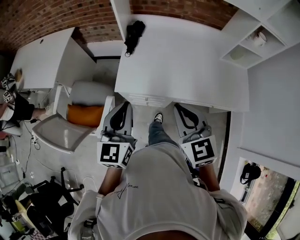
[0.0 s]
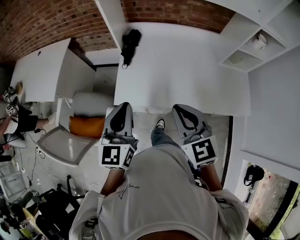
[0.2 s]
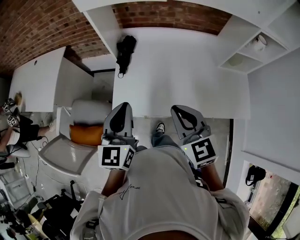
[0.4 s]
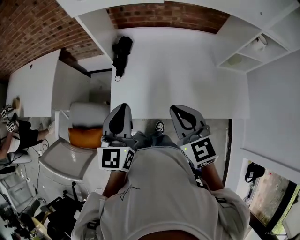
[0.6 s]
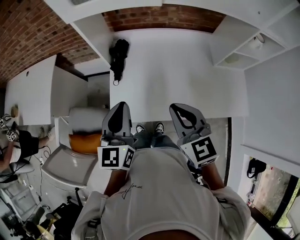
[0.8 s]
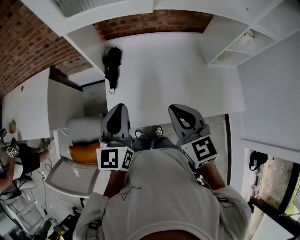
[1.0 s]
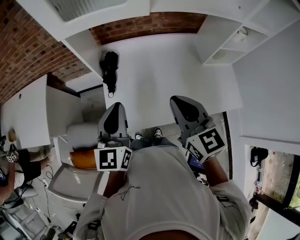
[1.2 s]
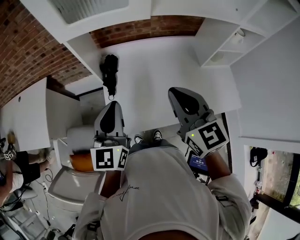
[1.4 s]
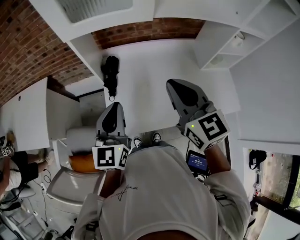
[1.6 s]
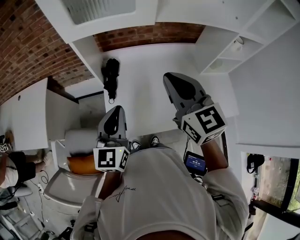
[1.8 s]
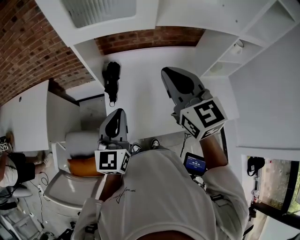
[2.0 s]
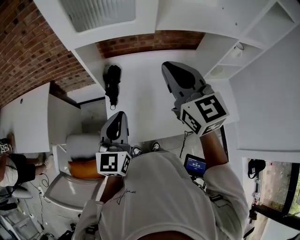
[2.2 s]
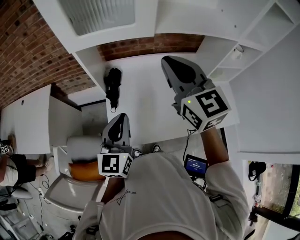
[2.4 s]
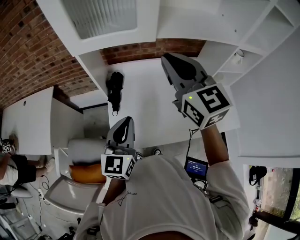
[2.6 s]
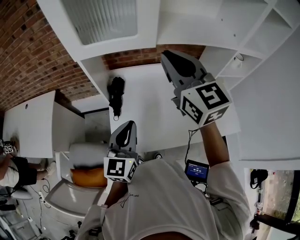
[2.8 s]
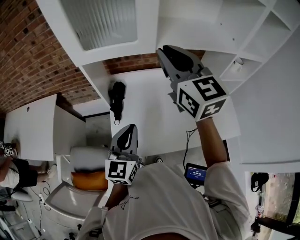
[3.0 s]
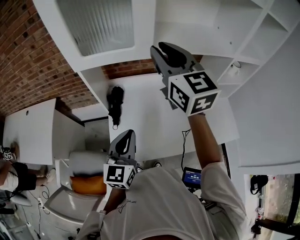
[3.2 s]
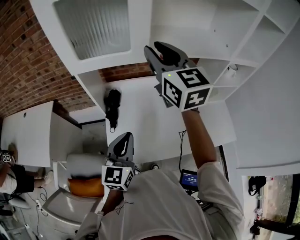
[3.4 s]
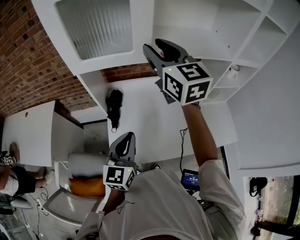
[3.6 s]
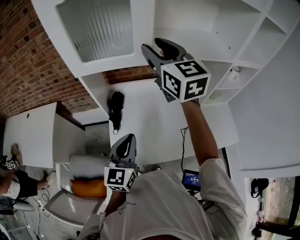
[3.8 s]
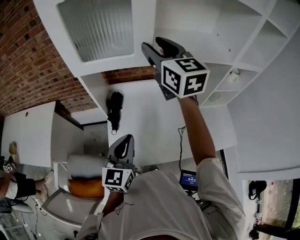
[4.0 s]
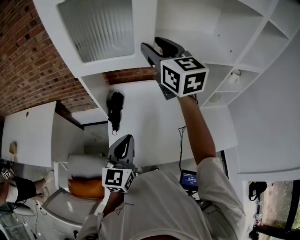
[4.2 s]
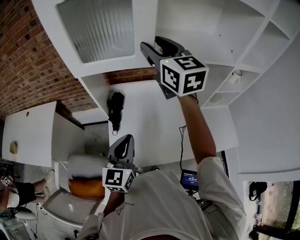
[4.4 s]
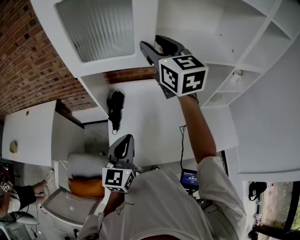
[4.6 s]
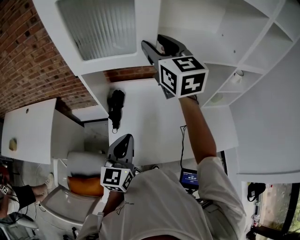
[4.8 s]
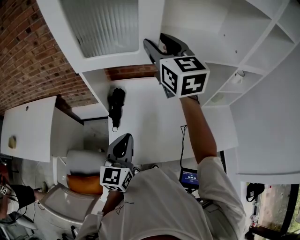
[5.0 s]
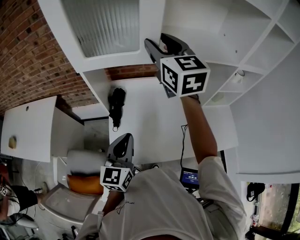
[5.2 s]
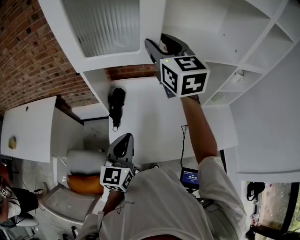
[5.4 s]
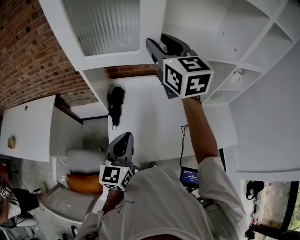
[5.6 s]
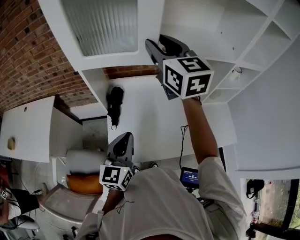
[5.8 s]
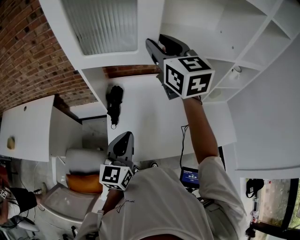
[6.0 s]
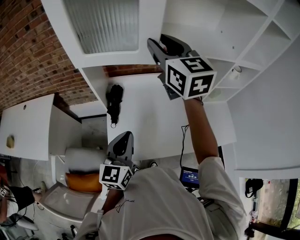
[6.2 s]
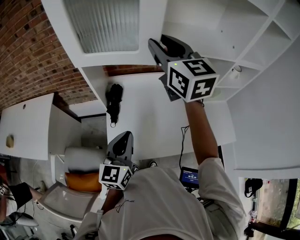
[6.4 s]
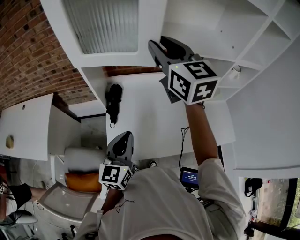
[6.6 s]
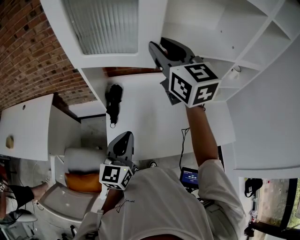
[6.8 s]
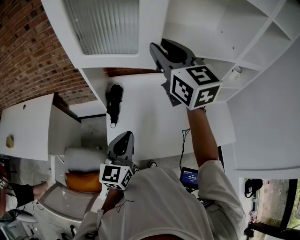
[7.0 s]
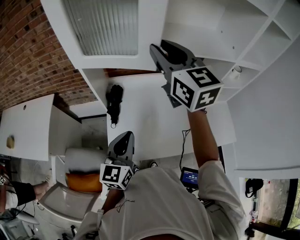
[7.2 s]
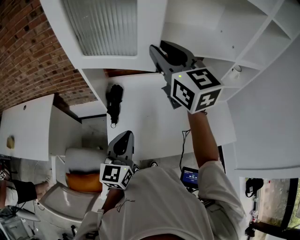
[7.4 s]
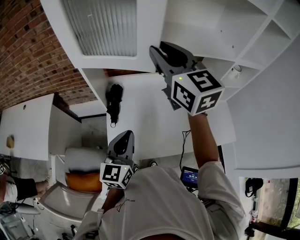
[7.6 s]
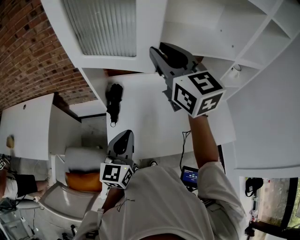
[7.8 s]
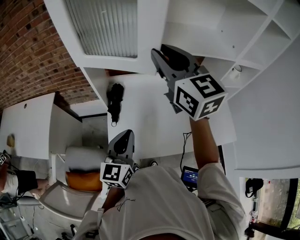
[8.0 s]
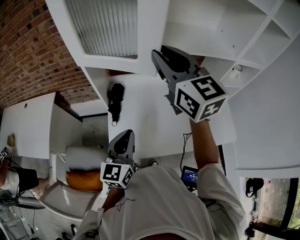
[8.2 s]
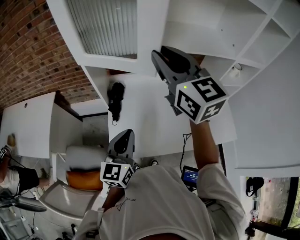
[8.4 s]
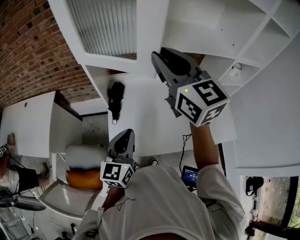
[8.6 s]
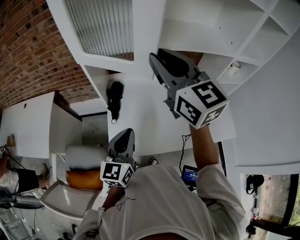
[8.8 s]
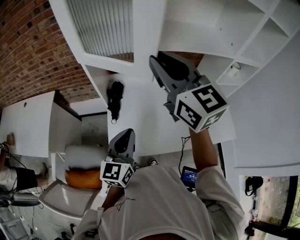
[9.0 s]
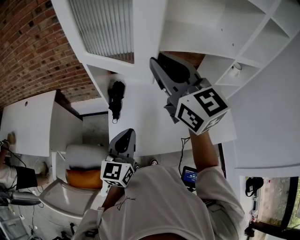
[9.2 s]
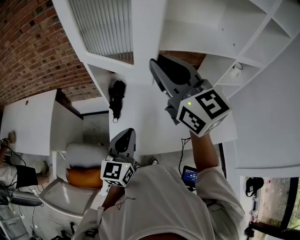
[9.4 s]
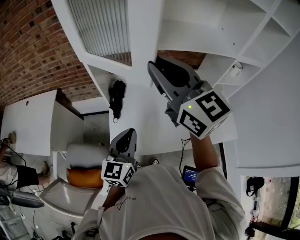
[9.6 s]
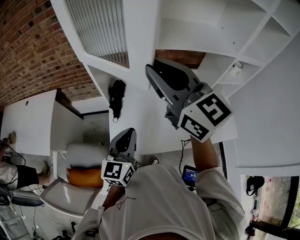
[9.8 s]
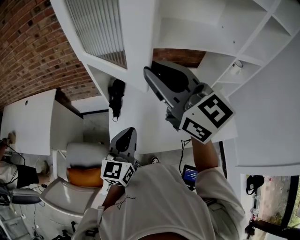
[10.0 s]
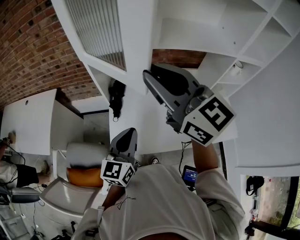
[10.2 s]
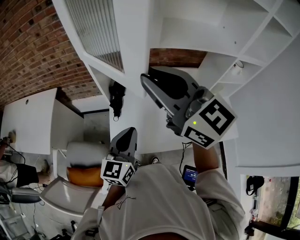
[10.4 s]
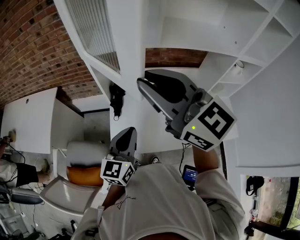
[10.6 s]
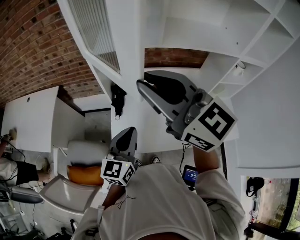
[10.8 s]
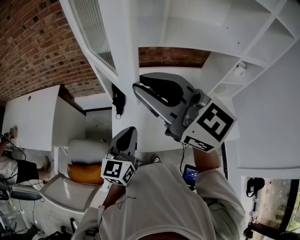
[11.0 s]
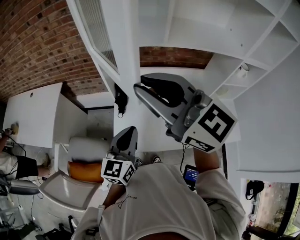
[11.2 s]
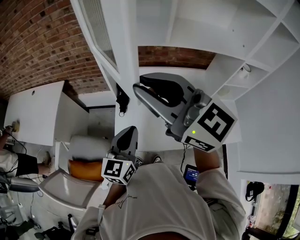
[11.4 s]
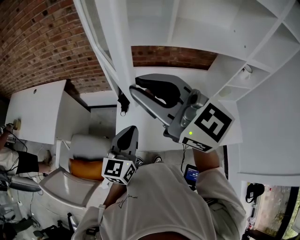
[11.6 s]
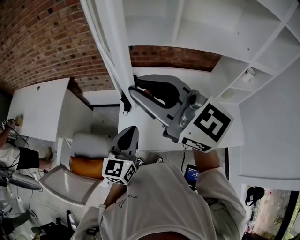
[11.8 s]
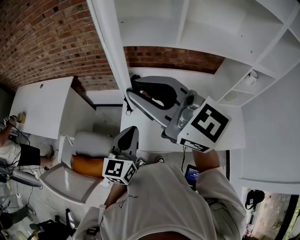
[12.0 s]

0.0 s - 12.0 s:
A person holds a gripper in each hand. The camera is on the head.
0.0 s - 1.6 s: The left gripper heads forward, covering about 20 cm; the right gripper heads forward and upward, covering about 25 cm.
1.6 s - 3.0 s: The right gripper heads upward and forward, covering approximately 20 cm.
3.0 s - 4.4 s: The right gripper is displaced forward by roughly 10 cm, and opens up.
4.4 s - 6.0 s: The grippers stay close to where they were, moving slightly.
6.0 s - 7.6 s: The grippers move only a little.
7.6 s - 9.0 s: The right gripper goes roughly 5 cm backward.
9.0 s - 10.4 s: The right gripper goes some 5 cm backward.
10.4 s - 12.0 s: The right gripper shifts approximately 10 cm to the left.

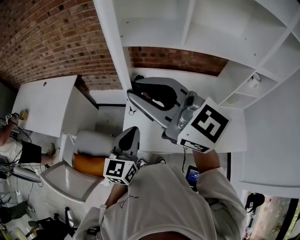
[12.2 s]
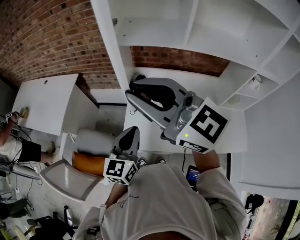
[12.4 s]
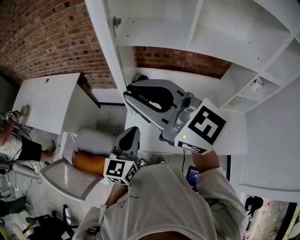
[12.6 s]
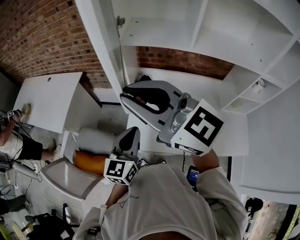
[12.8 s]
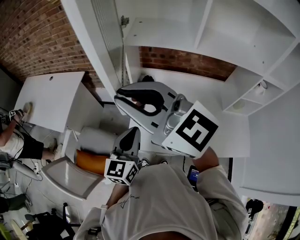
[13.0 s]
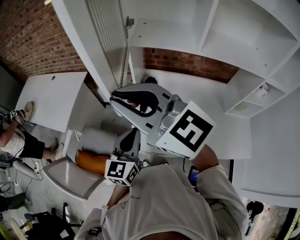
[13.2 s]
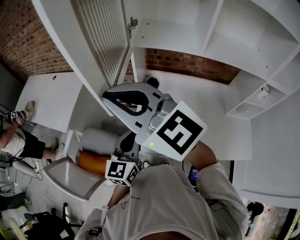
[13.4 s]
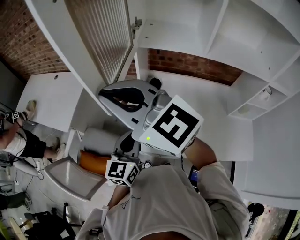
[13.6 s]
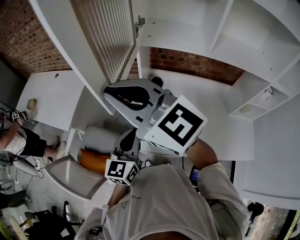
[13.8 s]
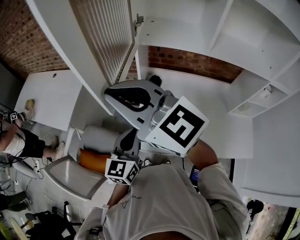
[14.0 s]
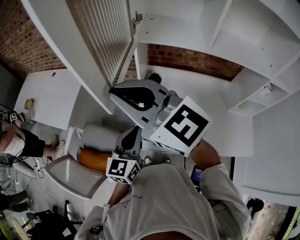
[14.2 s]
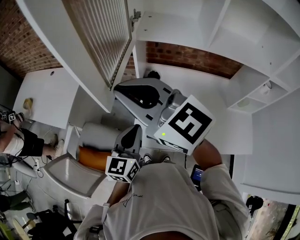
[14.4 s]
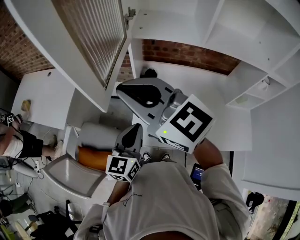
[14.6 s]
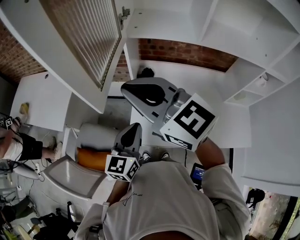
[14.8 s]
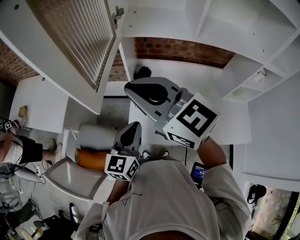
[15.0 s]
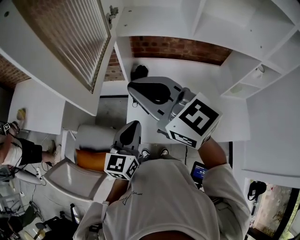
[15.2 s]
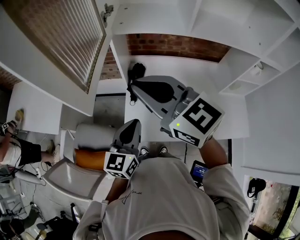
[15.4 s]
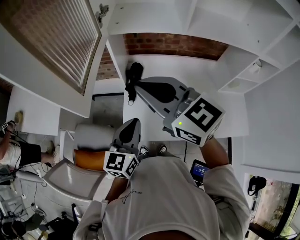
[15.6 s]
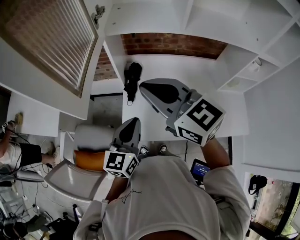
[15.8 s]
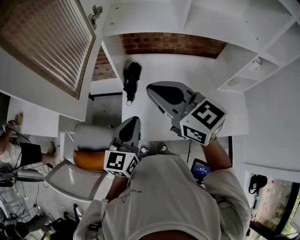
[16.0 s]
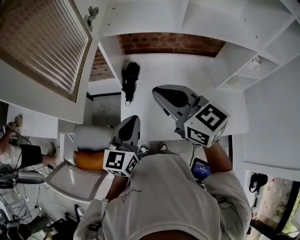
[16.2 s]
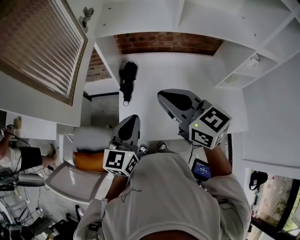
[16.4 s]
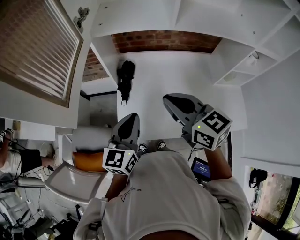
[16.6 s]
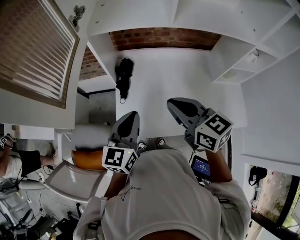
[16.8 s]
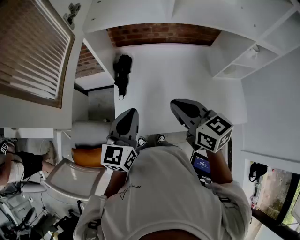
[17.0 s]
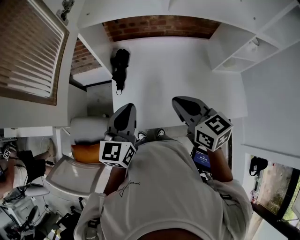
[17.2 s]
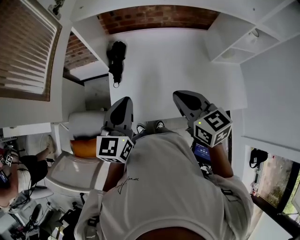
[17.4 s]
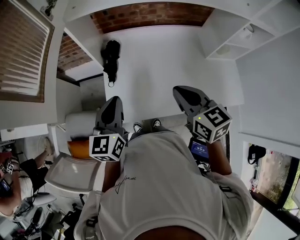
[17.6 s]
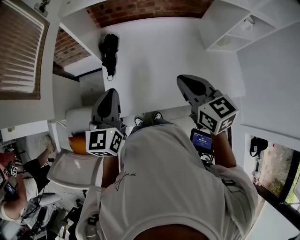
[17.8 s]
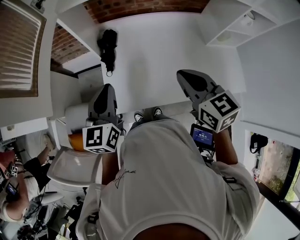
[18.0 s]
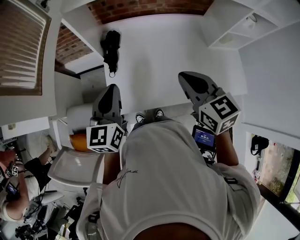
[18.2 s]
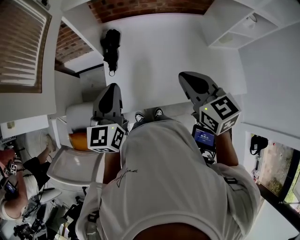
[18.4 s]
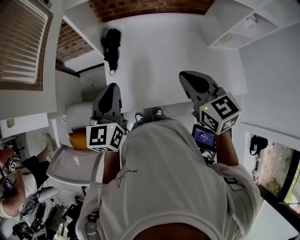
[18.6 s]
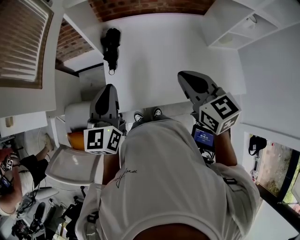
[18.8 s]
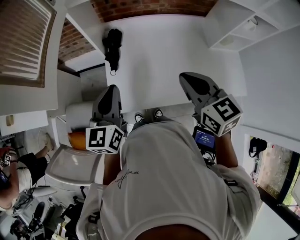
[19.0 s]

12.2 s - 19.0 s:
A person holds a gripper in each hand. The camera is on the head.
12.2 s - 13.6 s: The right gripper moves to the left, roughly 15 cm. Meanwhile the left gripper heads to the left, covering roughly 5 cm.
13.6 s - 15.0 s: The right gripper travels to the right and downward by about 10 cm.
15.0 s - 16.2 s: The right gripper moves to the right and downward, about 15 cm.
16.2 s - 17.6 s: The right gripper is displaced to the right, downward and backward by about 20 cm, and swivels roughly 30 degrees.
17.6 s - 19.0 s: The grippers make only small movements.

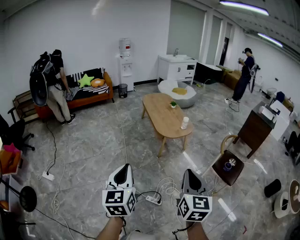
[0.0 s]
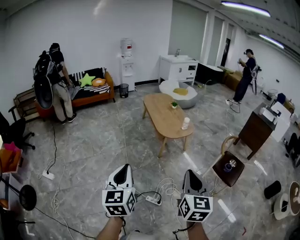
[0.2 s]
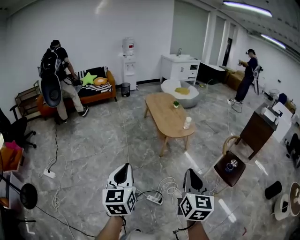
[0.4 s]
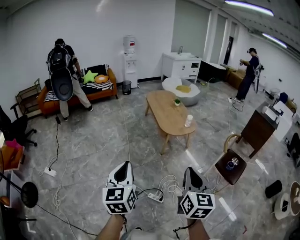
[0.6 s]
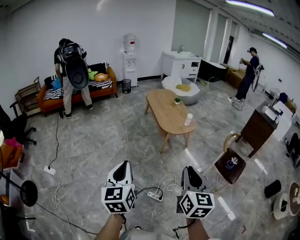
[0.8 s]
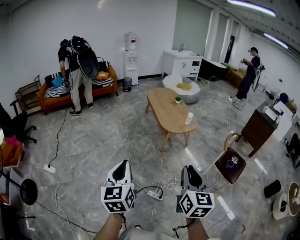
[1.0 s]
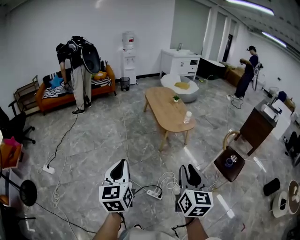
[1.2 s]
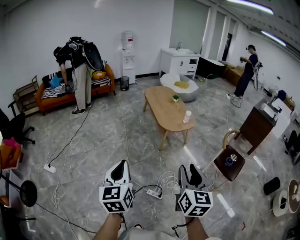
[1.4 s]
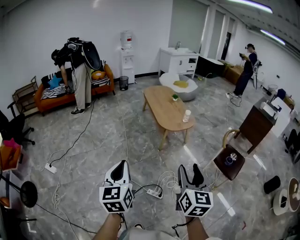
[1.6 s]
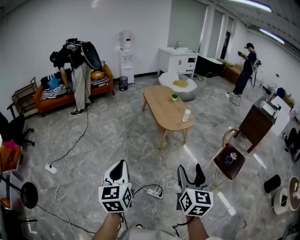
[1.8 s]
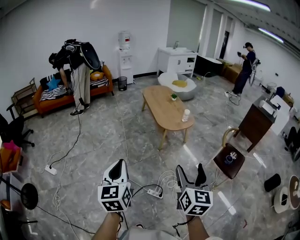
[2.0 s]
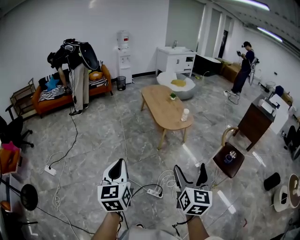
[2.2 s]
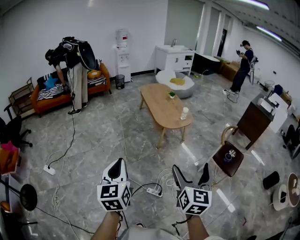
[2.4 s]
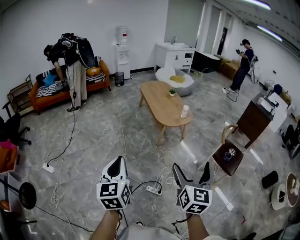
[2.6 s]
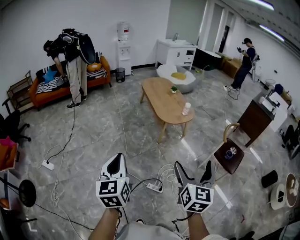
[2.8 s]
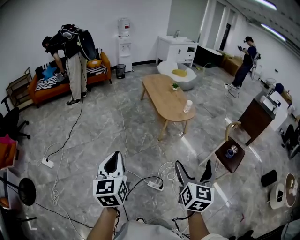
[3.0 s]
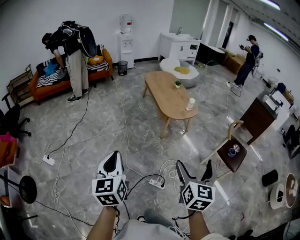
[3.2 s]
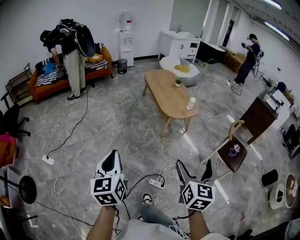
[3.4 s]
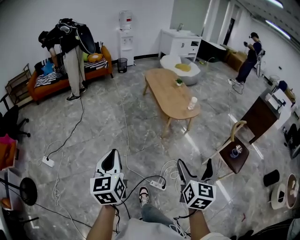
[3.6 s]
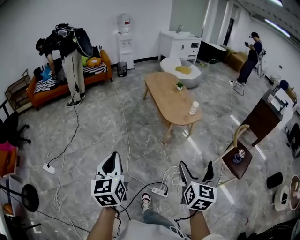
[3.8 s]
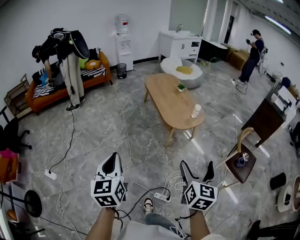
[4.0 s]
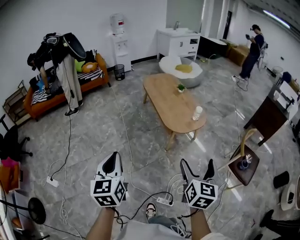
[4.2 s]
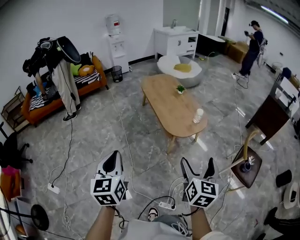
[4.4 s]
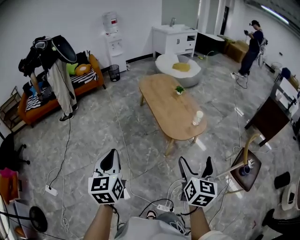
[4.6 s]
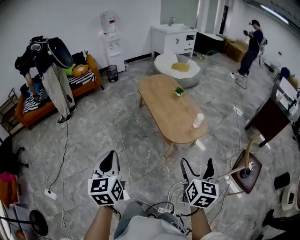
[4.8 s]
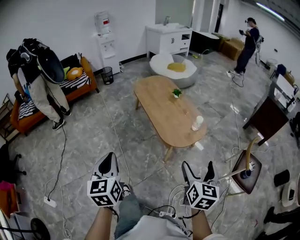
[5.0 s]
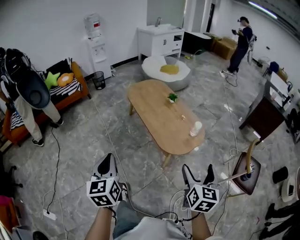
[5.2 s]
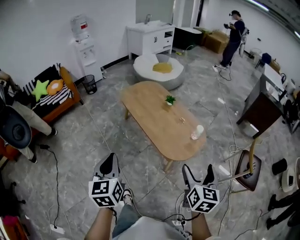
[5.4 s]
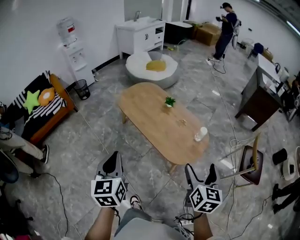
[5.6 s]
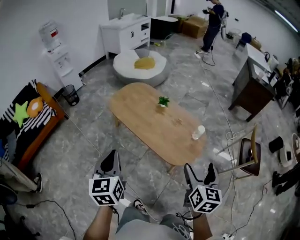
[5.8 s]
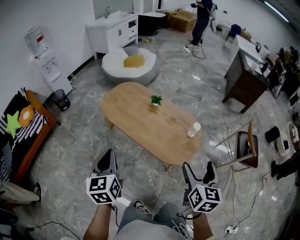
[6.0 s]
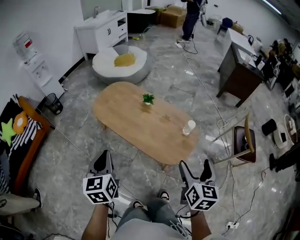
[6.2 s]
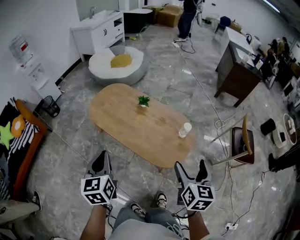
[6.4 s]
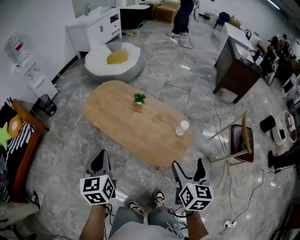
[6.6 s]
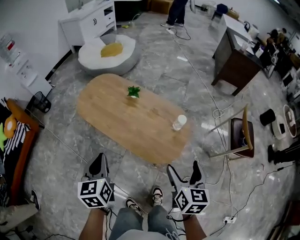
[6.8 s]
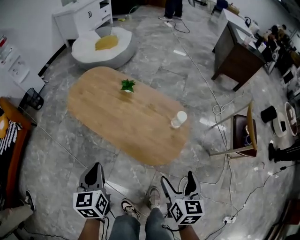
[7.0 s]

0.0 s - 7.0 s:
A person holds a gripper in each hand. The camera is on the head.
0.0 s - 1.4 s: The grippers stay close to where they were, moving slightly.
1.4 s - 2.8 s: The right gripper opens up.
2.8 s - 4.2 s: The grippers both shift forward by approximately 25 cm.
4.2 s - 5.6 s: Both grippers move forward, some 40 cm. The left gripper turns by approximately 20 degrees. The right gripper rotates some 20 degrees.
5.6 s - 7.0 s: The right gripper shifts about 20 cm downward and forward, while the left gripper shifts about 25 cm forward and downward, and changes its angle by about 20 degrees.
